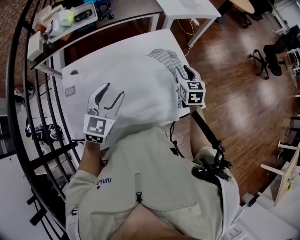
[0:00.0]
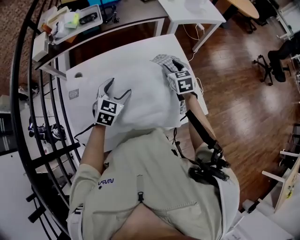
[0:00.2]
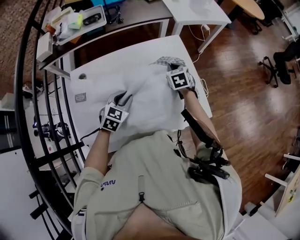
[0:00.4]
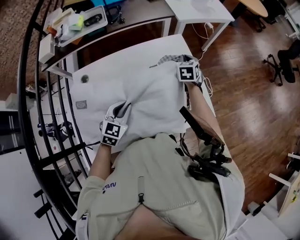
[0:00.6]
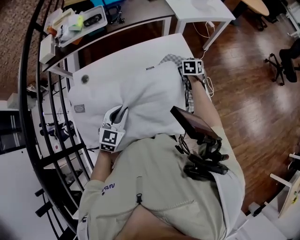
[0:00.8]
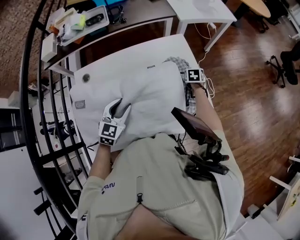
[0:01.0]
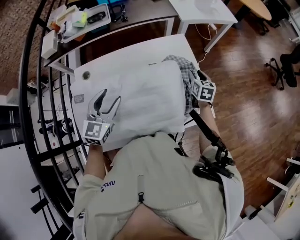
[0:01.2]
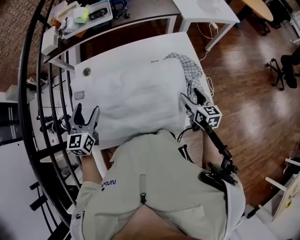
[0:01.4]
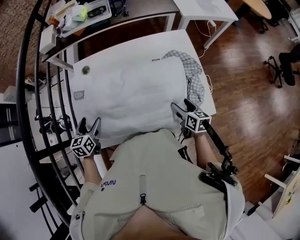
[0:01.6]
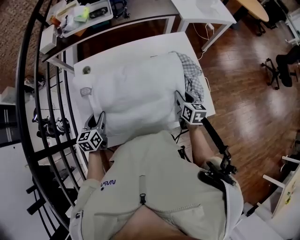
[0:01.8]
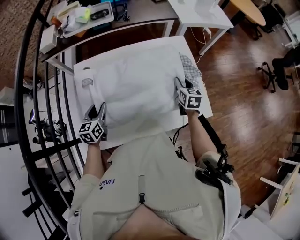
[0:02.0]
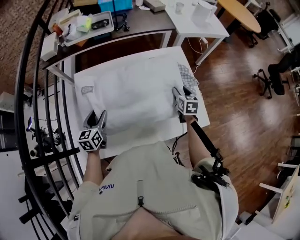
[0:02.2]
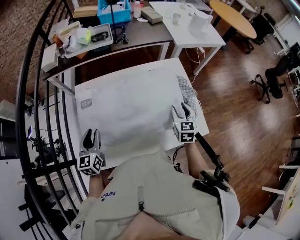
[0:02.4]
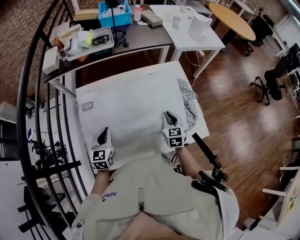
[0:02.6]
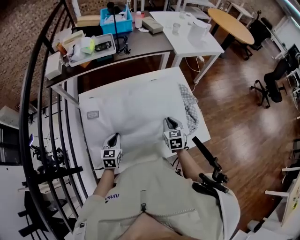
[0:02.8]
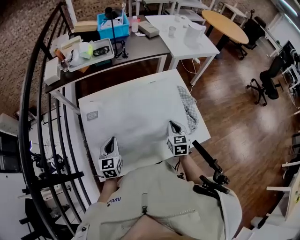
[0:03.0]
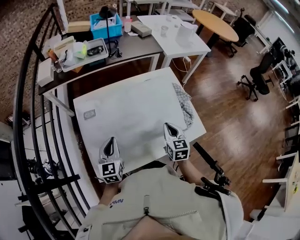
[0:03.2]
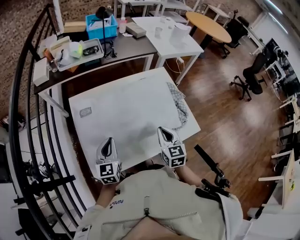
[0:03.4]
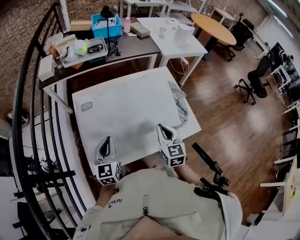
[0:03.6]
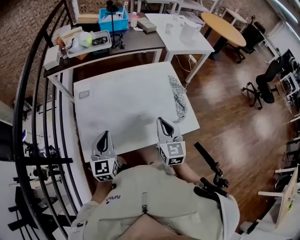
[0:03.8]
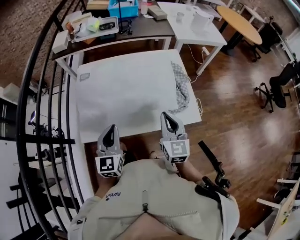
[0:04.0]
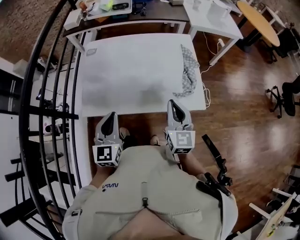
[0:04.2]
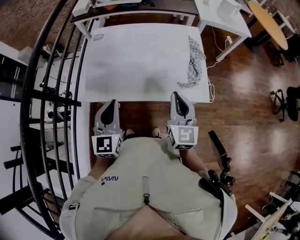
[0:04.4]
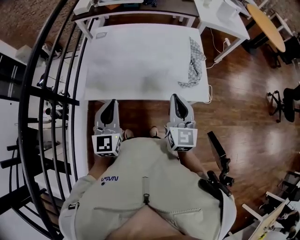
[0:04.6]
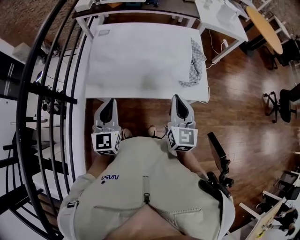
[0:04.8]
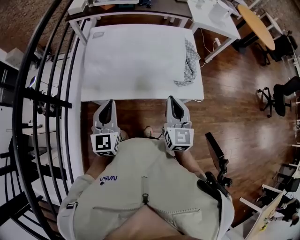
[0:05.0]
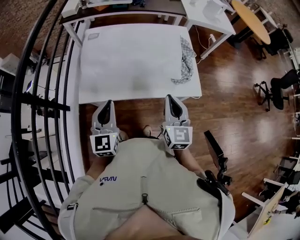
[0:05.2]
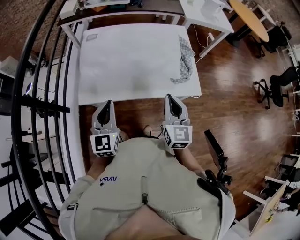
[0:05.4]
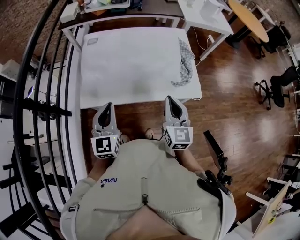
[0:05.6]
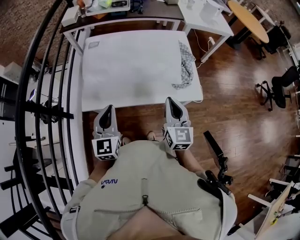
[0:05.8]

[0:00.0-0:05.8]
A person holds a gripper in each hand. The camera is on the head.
0:00.0 to 0:01.4: The left gripper goes downward and returns, roughly 15 cm each way, swivels about 30 degrees, and opens its fingers. The right gripper moves some 15 cm downward and comes back, rotates roughly 20 degrees, and closes, then reopens.
0:01.4 to 0:02.8: The right gripper goes forward and backward, about 15 cm each way, reversing 2 times, rotates approximately 20 degrees, and closes its fingers, while the left gripper goes up and down, some 15 cm each way, reversing 2 times, and closes its fingers.
0:02.8 to 0:04.4: The left gripper heads backward, upward and to the right, covering some 35 cm, and rotates about 30 degrees. Meanwhile the right gripper heads backward and upward, covering about 30 cm, and changes its angle by roughly 30 degrees.
0:04.4 to 0:05.8: The grippers make only small movements.

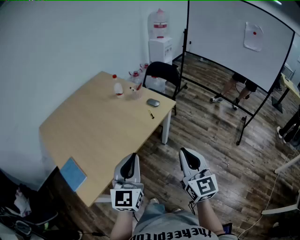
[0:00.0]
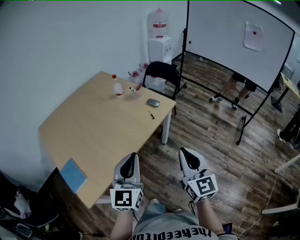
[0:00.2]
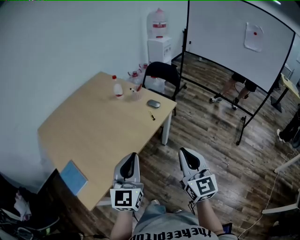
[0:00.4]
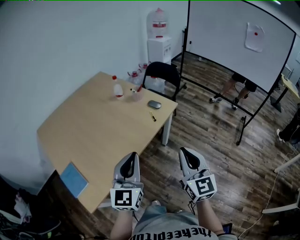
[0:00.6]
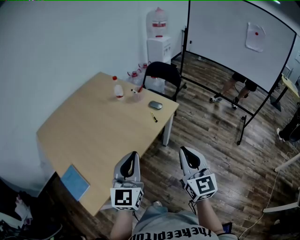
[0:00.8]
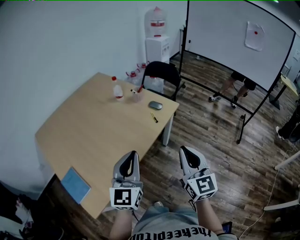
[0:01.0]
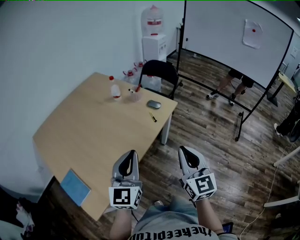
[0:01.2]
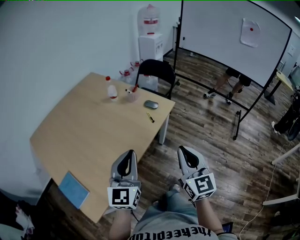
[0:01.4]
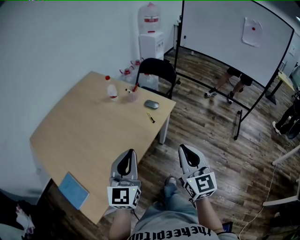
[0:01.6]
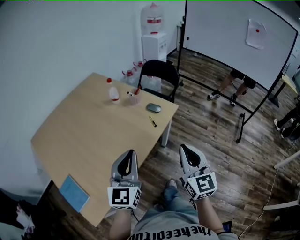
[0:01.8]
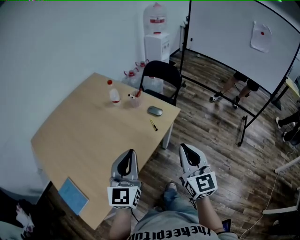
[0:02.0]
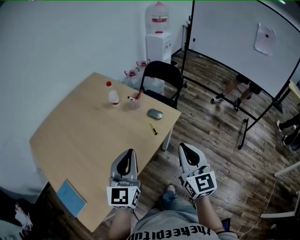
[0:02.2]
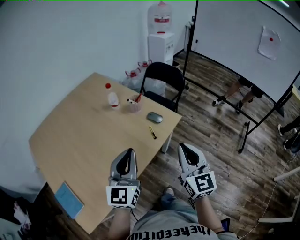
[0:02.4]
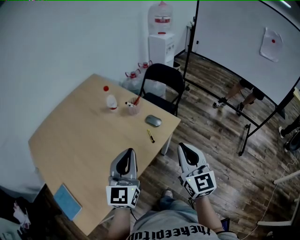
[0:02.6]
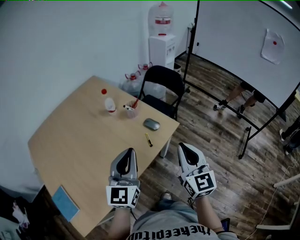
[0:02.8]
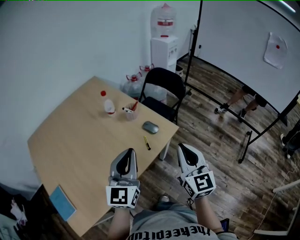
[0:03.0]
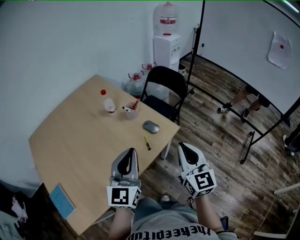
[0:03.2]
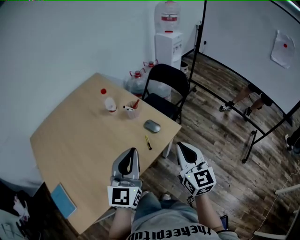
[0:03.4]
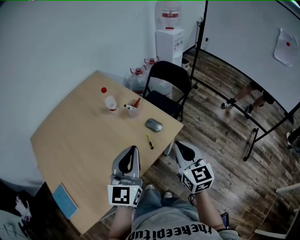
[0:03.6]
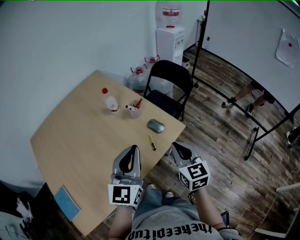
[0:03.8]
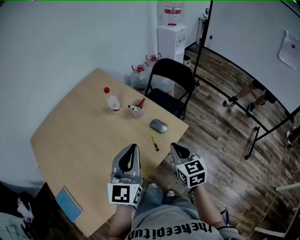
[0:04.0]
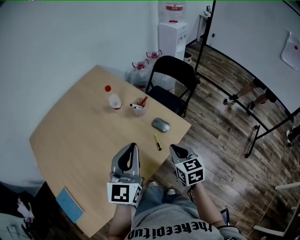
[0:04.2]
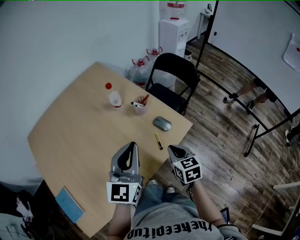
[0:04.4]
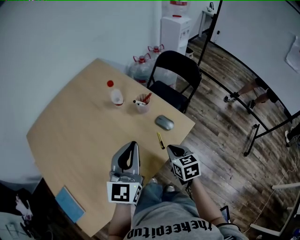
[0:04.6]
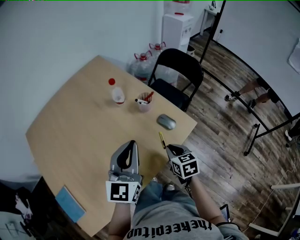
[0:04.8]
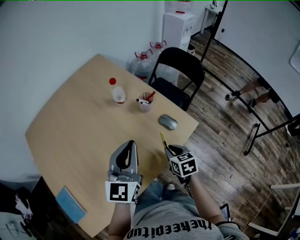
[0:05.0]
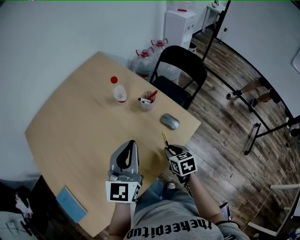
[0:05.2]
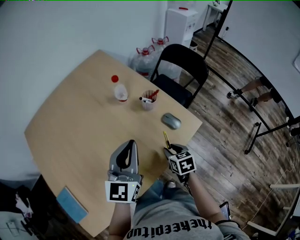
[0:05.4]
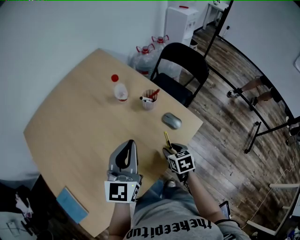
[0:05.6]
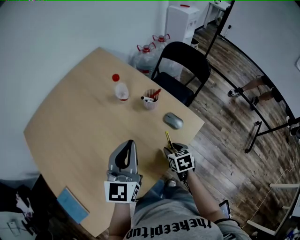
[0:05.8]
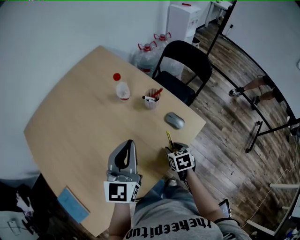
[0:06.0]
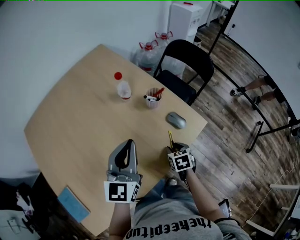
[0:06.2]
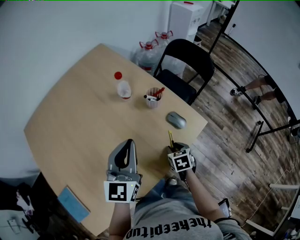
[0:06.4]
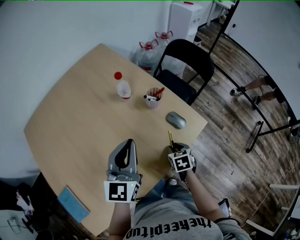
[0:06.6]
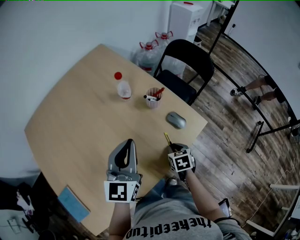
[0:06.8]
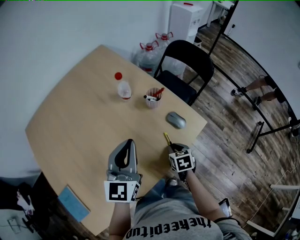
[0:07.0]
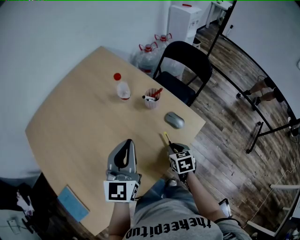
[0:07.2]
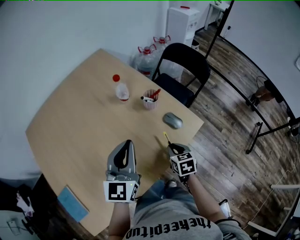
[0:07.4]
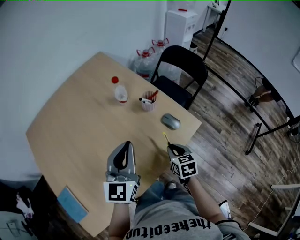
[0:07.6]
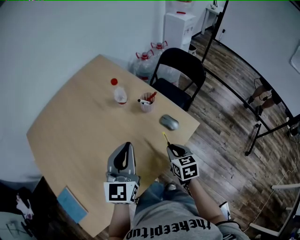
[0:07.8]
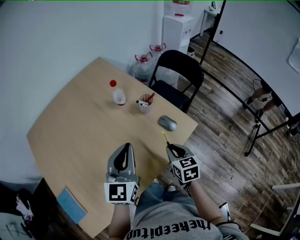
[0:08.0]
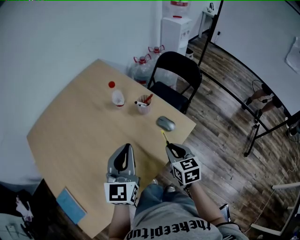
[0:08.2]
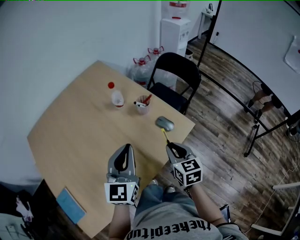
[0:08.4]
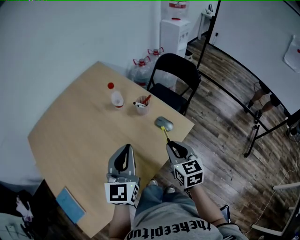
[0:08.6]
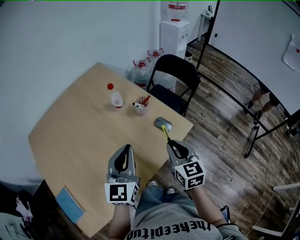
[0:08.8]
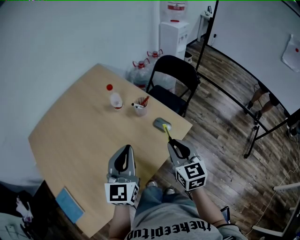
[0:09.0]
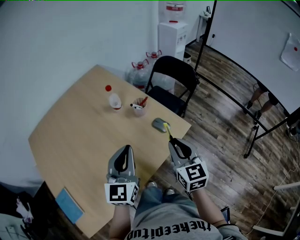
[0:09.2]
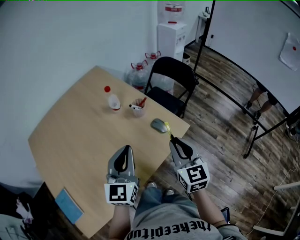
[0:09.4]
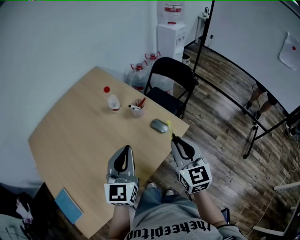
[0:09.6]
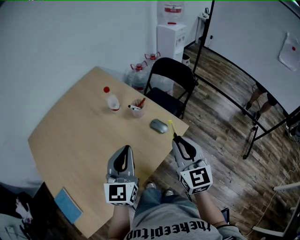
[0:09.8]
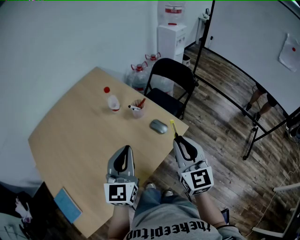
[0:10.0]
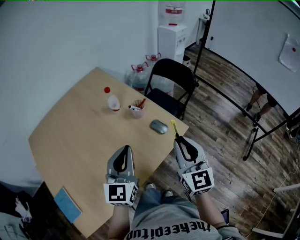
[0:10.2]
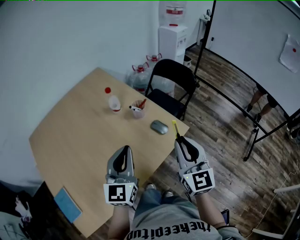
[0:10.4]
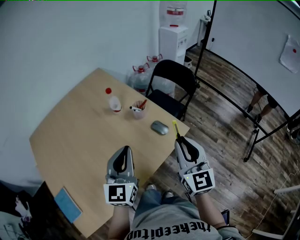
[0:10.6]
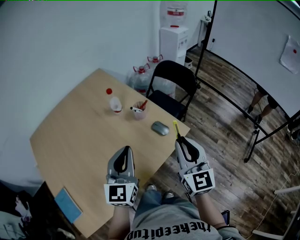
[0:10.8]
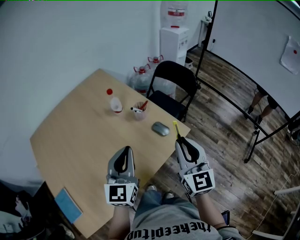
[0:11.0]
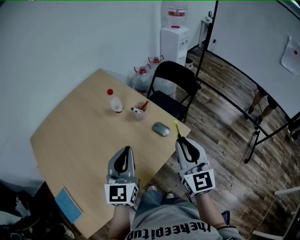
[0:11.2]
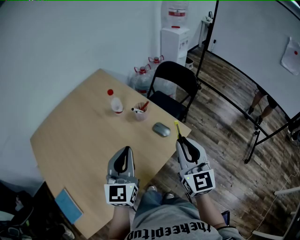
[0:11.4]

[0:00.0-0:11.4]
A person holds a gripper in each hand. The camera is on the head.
0:00.0 to 0:01.4: The grippers both shift forward by some 5 cm.
0:01.4 to 0:02.8: The grippers both shift forward by roughly 20 cm.
0:02.8 to 0:04.2: The left gripper is displaced forward by roughly 10 cm. Meanwhile the right gripper moves downward and forward, approximately 15 cm, and swivels some 30 degrees.
0:04.2 to 0:05.6: The right gripper goes some 15 cm downward, changes its angle by some 20 degrees, and opens up. The left gripper heads to the left and forward, covering approximately 10 cm.
0:05.6 to 0:07.2: The right gripper closes up.
0:07.2 to 0:08.6: The right gripper travels upward by about 15 cm, and changes its angle by roughly 30 degrees; the left gripper changes place by approximately 5 cm.
0:08.6 to 0:10.0: The right gripper shifts some 10 cm upward, and changes its angle by some 20 degrees.
0:10.0 to 0:11.4: Neither gripper changes place.

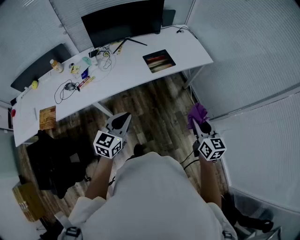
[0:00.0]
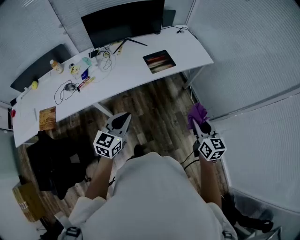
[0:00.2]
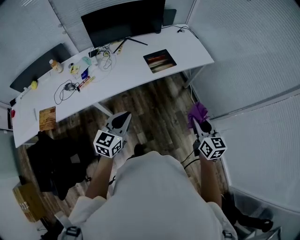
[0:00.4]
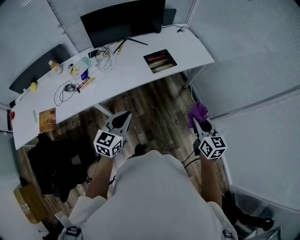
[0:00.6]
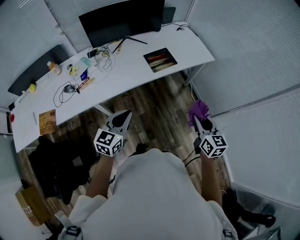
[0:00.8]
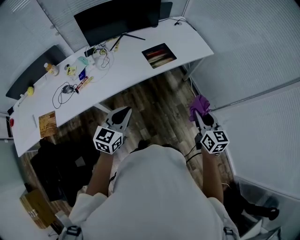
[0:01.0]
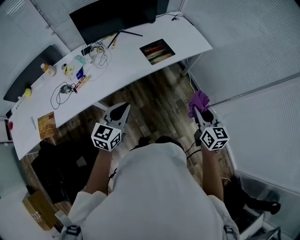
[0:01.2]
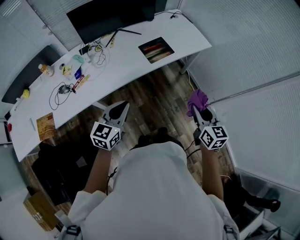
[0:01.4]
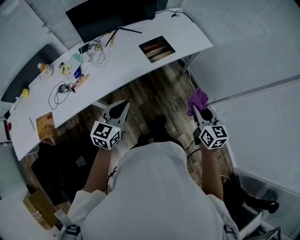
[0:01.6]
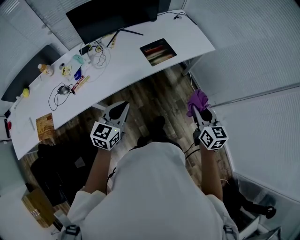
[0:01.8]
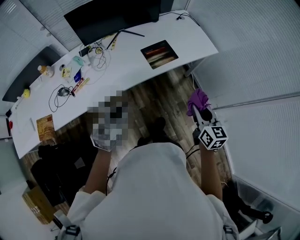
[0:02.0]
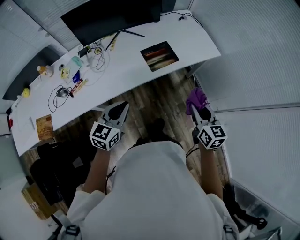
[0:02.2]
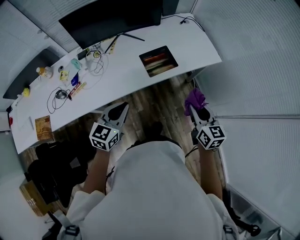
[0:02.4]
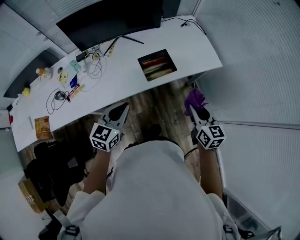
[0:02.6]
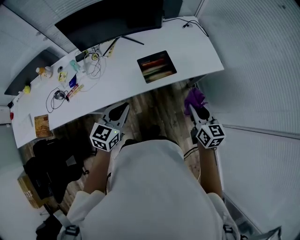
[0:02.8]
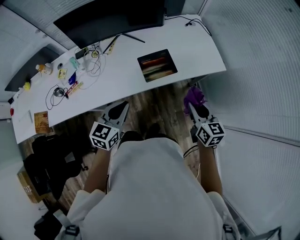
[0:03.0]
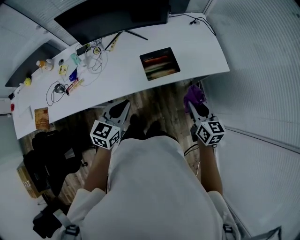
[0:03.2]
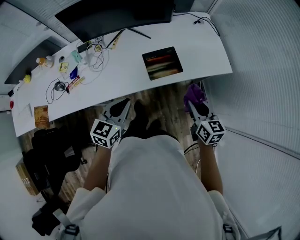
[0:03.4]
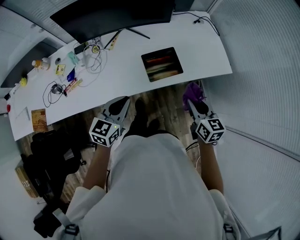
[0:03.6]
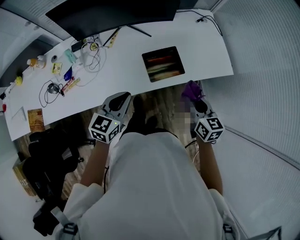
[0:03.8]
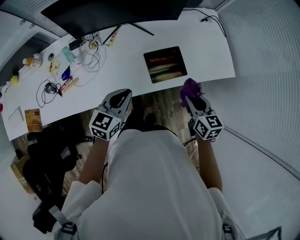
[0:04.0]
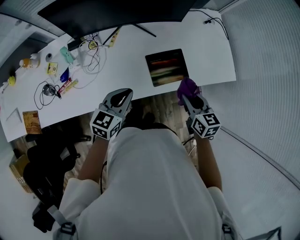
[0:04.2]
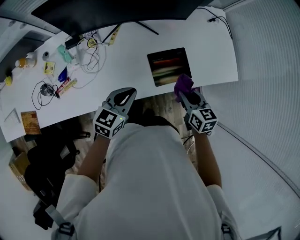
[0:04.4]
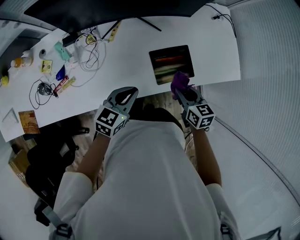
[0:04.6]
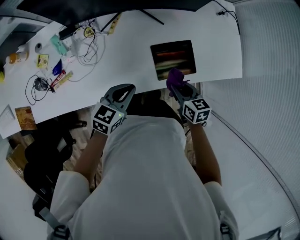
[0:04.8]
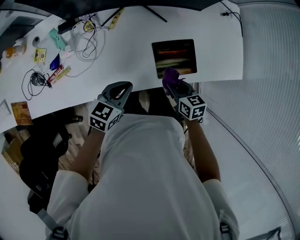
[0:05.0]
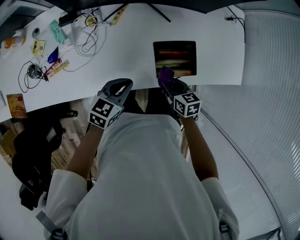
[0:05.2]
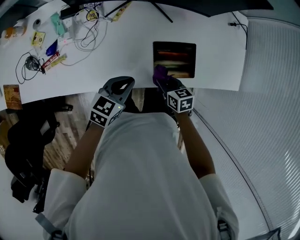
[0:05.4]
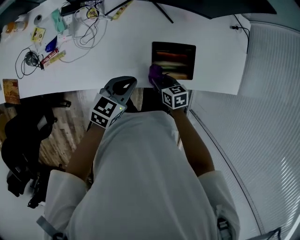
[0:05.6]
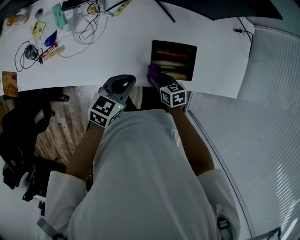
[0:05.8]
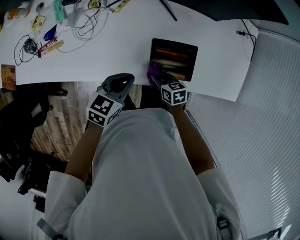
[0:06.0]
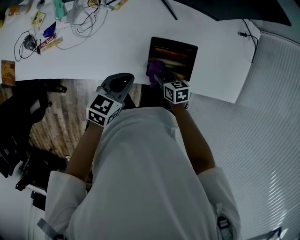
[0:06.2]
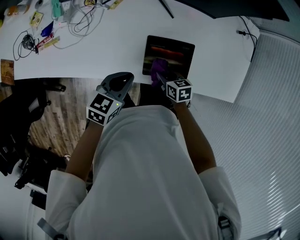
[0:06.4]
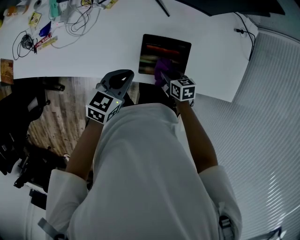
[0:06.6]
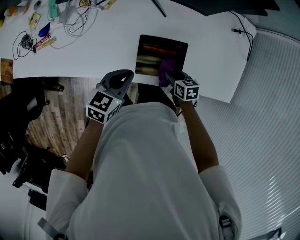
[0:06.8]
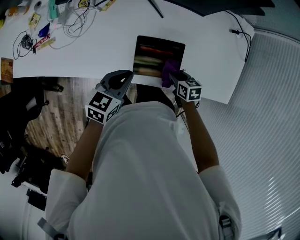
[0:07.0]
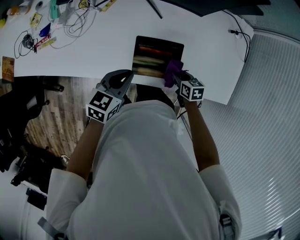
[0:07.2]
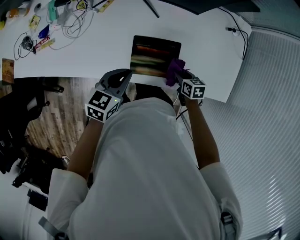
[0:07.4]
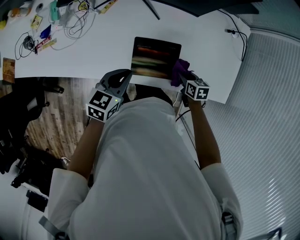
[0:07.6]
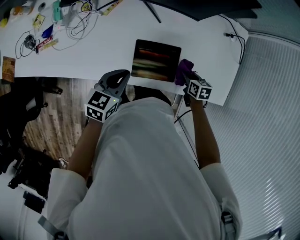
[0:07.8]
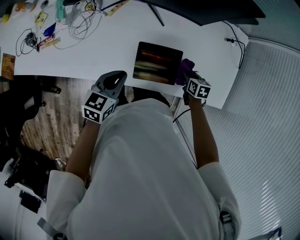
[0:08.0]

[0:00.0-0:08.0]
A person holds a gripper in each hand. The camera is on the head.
0:00.0 to 0:01.6: The right gripper goes approximately 5 cm to the left. The left gripper goes roughly 10 cm forward and to the left.
0:01.6 to 0:03.2: The left gripper goes roughly 20 cm forward and to the right, while the right gripper shifts approximately 25 cm forward.
0:03.2 to 0:04.8: The left gripper travels forward, downward and to the left by about 20 cm. The right gripper heads to the left, downward and forward, covering roughly 30 cm, and changes its angle by about 30 degrees.
0:04.8 to 0:06.4: The left gripper changes place by about 10 cm, while the right gripper goes about 15 cm downward, and changes its angle by about 30 degrees.
0:06.4 to 0:08.0: The right gripper goes some 20 cm to the right.
